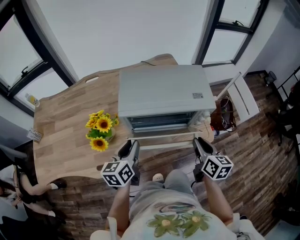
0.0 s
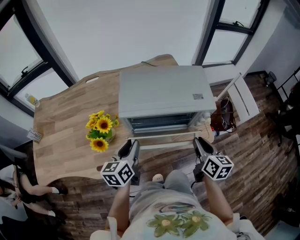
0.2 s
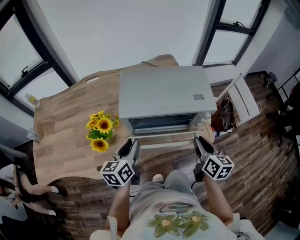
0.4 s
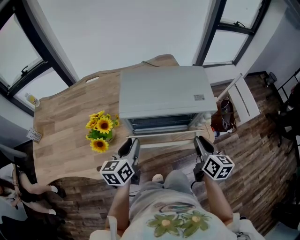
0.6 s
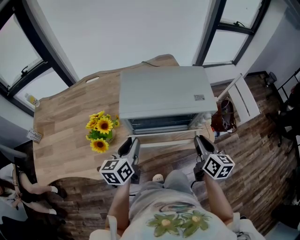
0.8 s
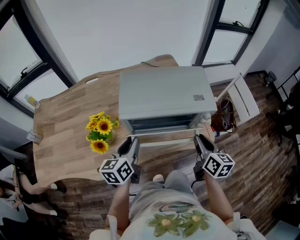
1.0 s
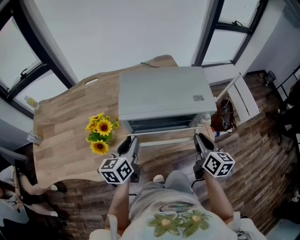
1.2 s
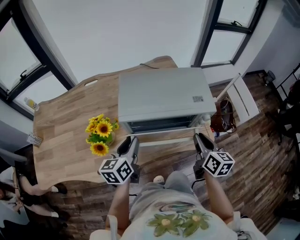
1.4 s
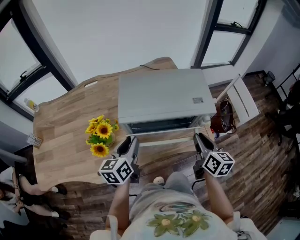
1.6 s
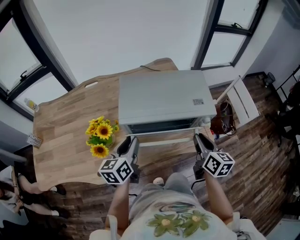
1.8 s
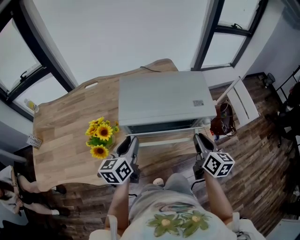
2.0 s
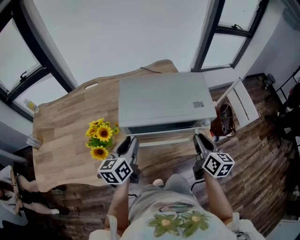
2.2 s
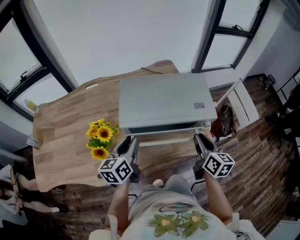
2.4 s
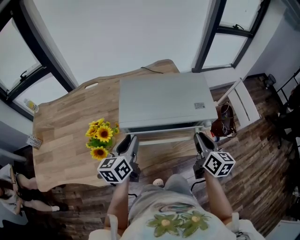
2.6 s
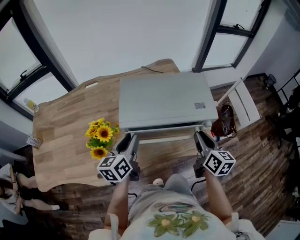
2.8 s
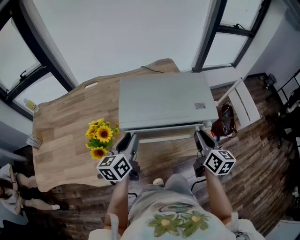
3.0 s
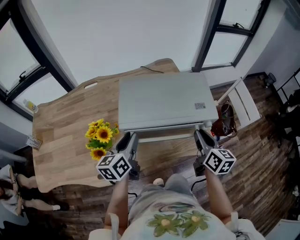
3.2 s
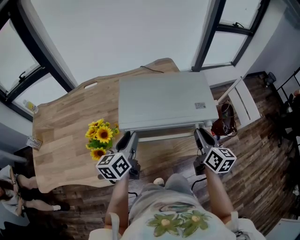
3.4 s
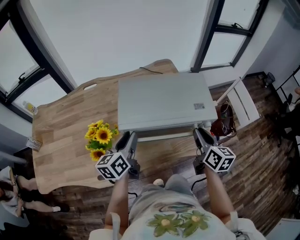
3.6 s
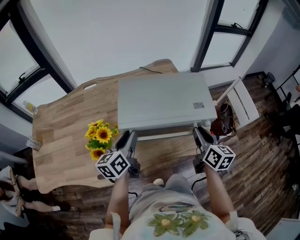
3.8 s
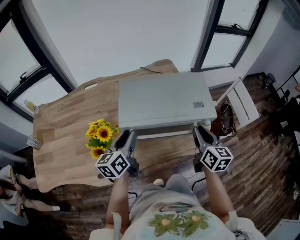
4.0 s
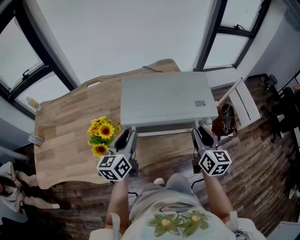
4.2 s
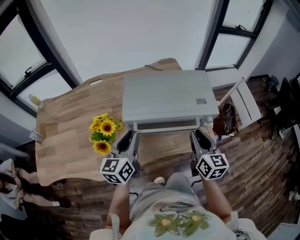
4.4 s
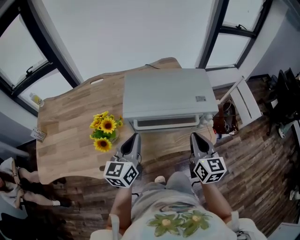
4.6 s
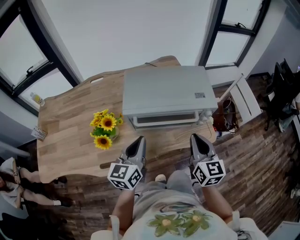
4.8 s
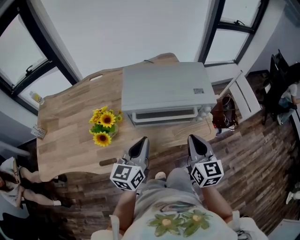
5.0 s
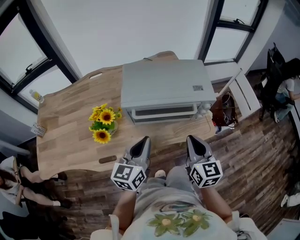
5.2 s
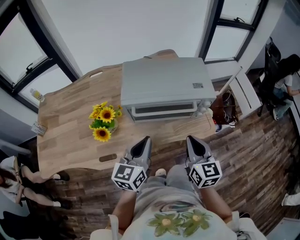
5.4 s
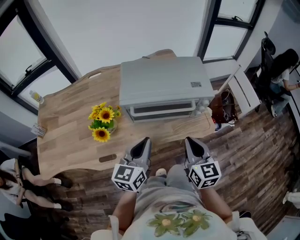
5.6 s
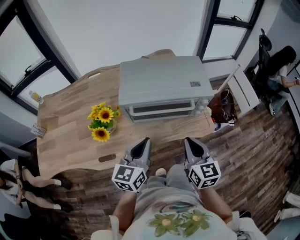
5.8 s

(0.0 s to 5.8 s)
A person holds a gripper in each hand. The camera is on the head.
0.0 s - 1.4 s: The grippers stay close to where they were, moving slightly.
1.4 s - 4.4 s: The grippers stay close to where they were, moving slightly.
4.4 s - 5.8 s: The right gripper heads backward, covering some 10 cm, and closes its fingers. Meanwhile the left gripper heads backward and to the right, covering approximately 10 cm, and closes its fingers.

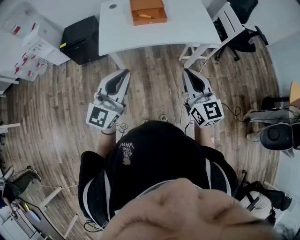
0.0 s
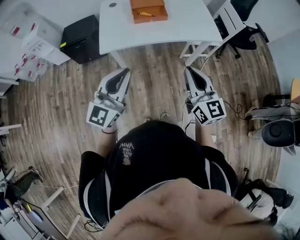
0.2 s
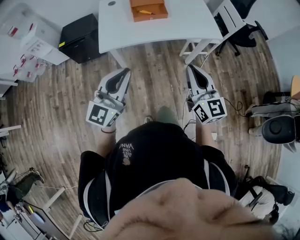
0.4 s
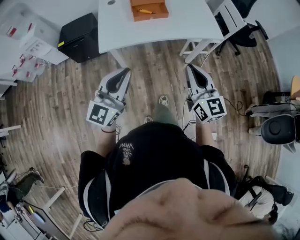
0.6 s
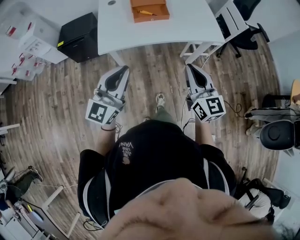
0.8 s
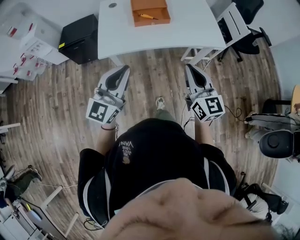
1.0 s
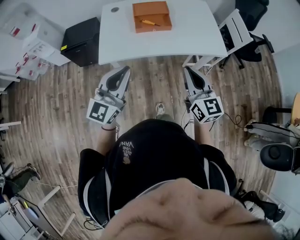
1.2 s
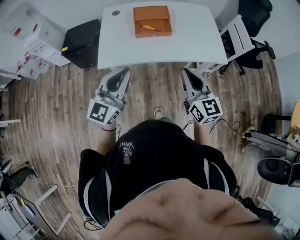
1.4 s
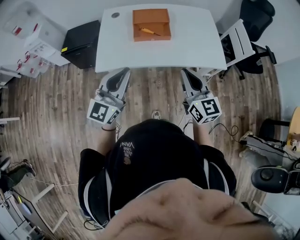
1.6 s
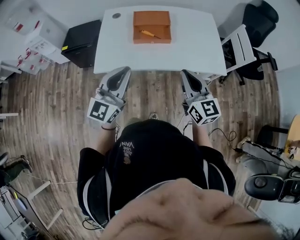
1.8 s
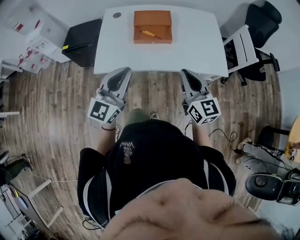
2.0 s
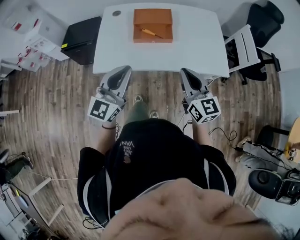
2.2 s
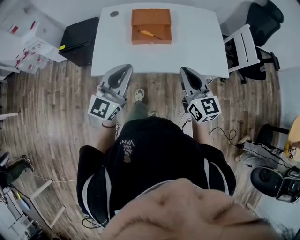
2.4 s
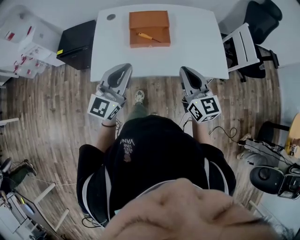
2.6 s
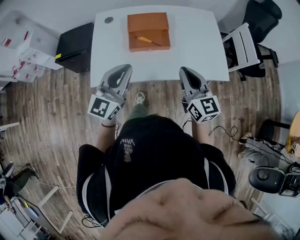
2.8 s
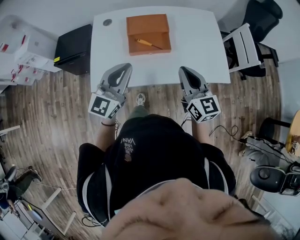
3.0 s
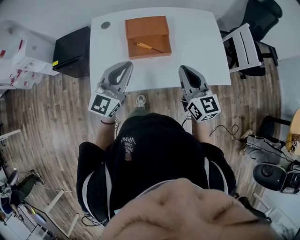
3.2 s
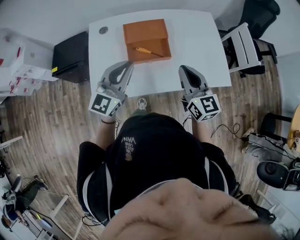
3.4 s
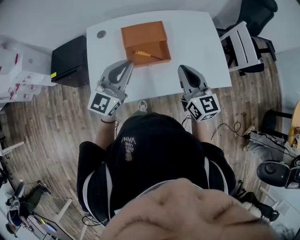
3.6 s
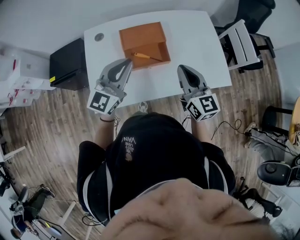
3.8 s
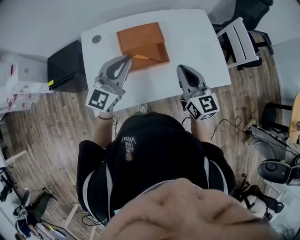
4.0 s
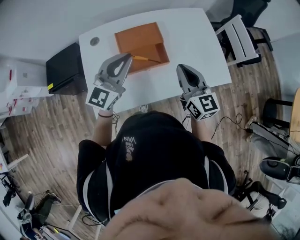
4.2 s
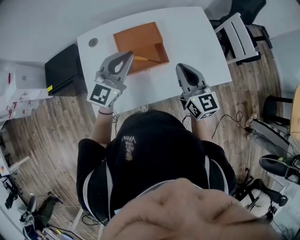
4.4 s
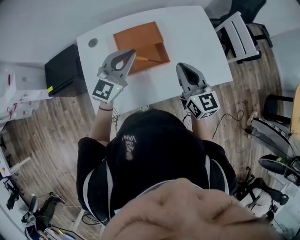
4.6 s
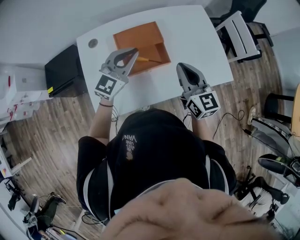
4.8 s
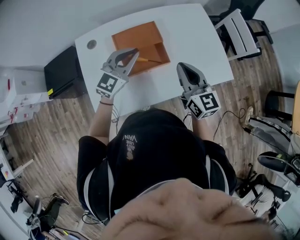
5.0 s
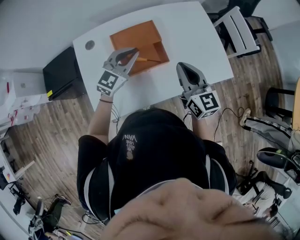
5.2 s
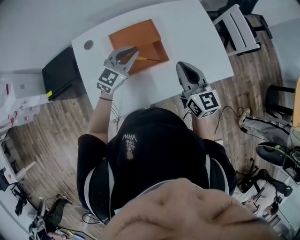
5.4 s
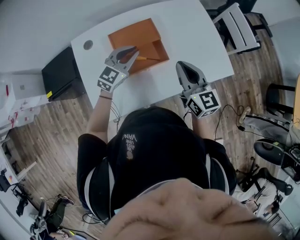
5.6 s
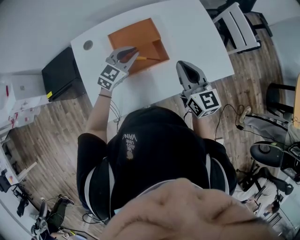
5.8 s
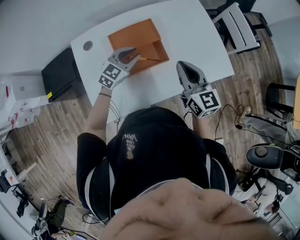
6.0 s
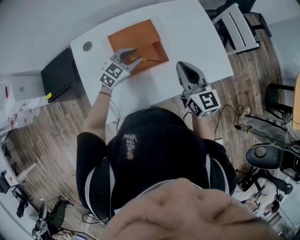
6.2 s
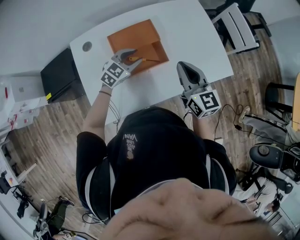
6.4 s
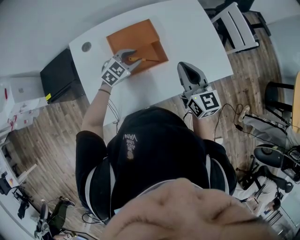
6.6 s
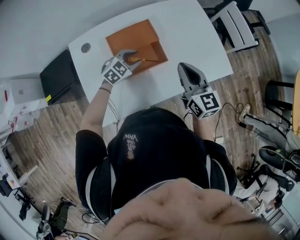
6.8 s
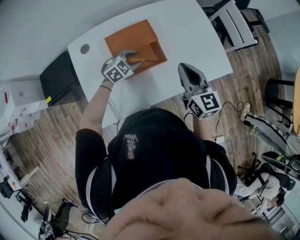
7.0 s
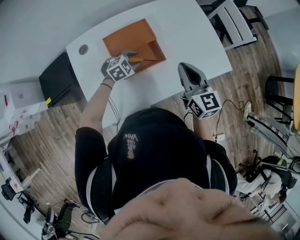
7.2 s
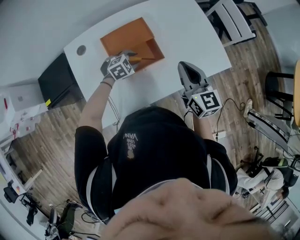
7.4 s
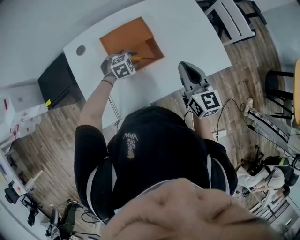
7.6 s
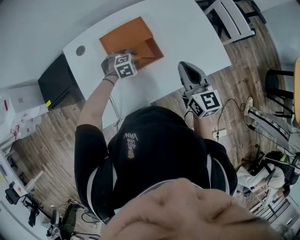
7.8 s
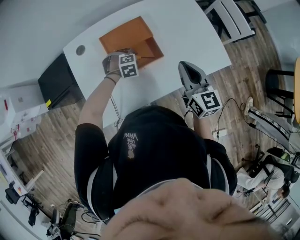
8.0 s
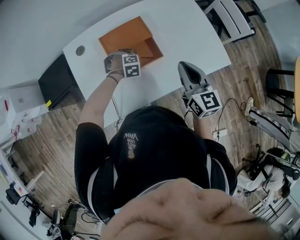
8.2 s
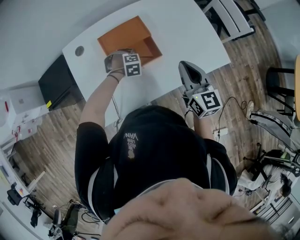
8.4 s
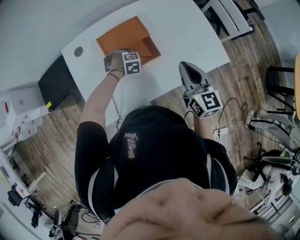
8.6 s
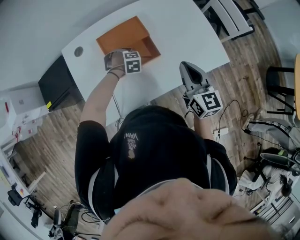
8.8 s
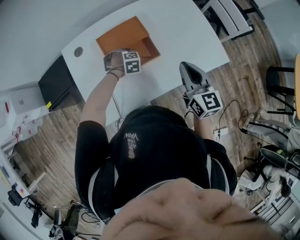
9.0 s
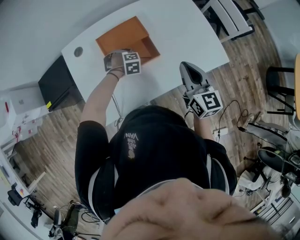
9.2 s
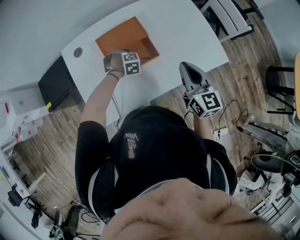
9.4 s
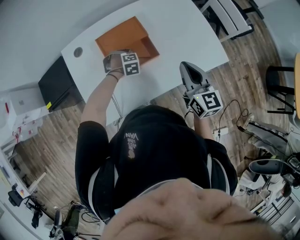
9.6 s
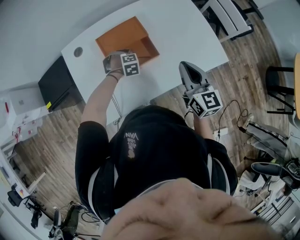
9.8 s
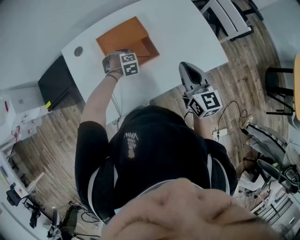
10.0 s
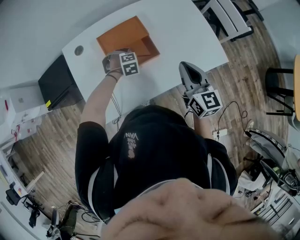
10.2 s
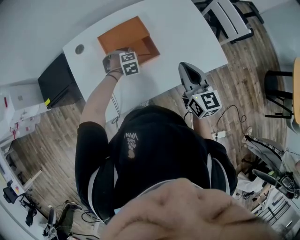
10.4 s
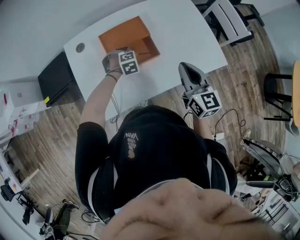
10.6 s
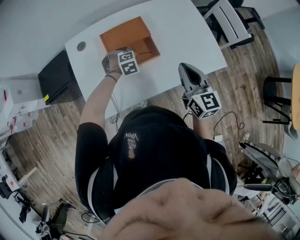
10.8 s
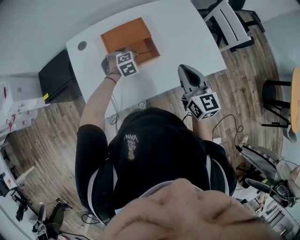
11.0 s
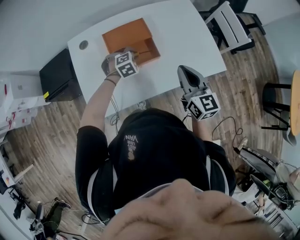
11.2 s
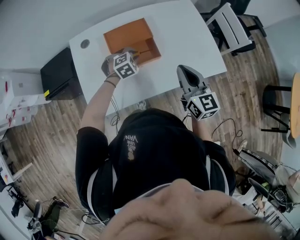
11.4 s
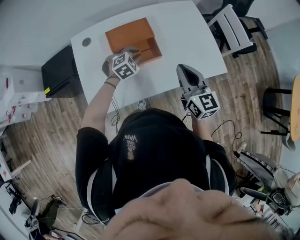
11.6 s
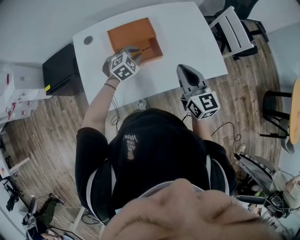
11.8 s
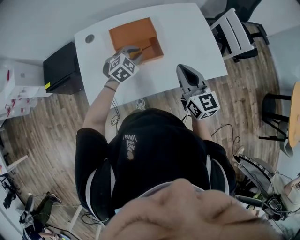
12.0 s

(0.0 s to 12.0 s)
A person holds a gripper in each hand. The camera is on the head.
0.0 s - 1.6 s: The two grippers go approximately 20 cm forward.
1.6 s - 3.0 s: The two grippers go some 15 cm forward.
3.0 s - 4.4 s: The right gripper moves forward, about 10 cm. The left gripper travels forward by some 15 cm.
4.4 s - 6.0 s: The left gripper shifts roughly 15 cm downward and forward, and turns by some 30 degrees.
6.0 s - 7.6 s: The left gripper shifts roughly 15 cm downward, and points its fingers approximately 40 degrees further downward.
7.6 s - 9.0 s: The left gripper changes its angle by roughly 30 degrees.
9.0 s - 10.4 s: The grippers make only small movements.
10.4 s - 12.0 s: The left gripper travels upward by some 15 cm, and rotates roughly 40 degrees.

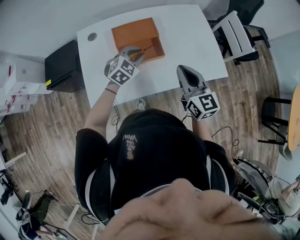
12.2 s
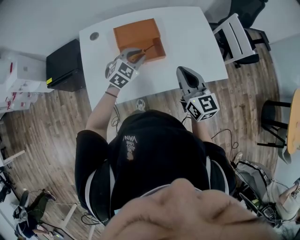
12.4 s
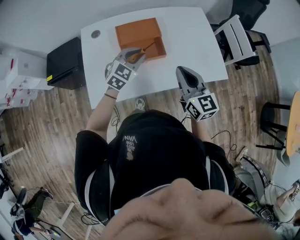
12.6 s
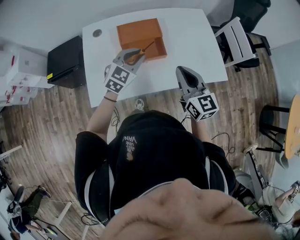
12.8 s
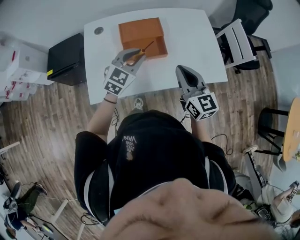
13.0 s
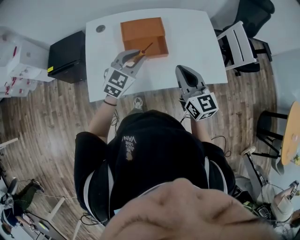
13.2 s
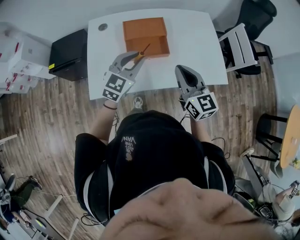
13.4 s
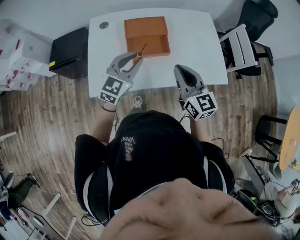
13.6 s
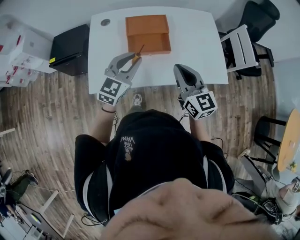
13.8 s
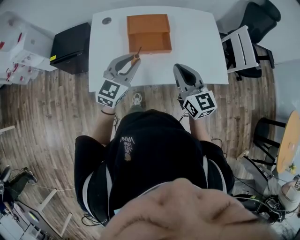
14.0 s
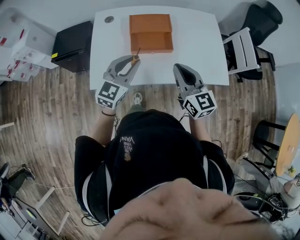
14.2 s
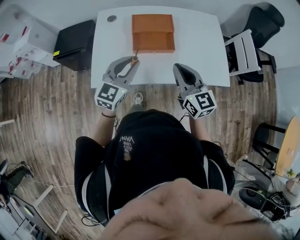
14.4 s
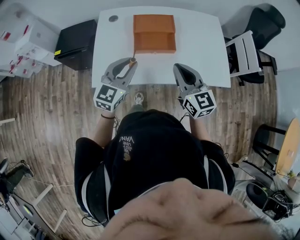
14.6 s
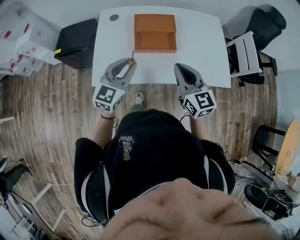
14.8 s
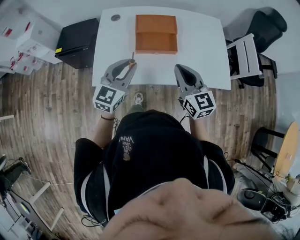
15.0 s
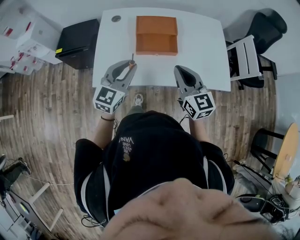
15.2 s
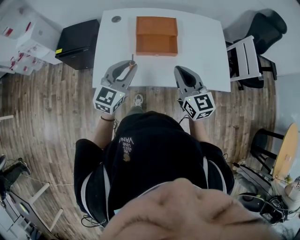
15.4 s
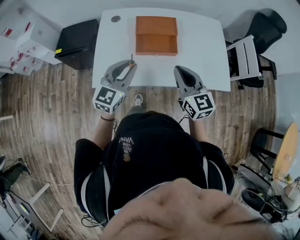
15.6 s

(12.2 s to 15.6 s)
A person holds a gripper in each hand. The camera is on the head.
12.2 s - 13.8 s: The right gripper changes place by some 5 cm. The left gripper moves backward and upward, some 15 cm, and changes its angle by roughly 30 degrees.
13.8 s - 15.6 s: The left gripper ends up some 5 cm from where it was.

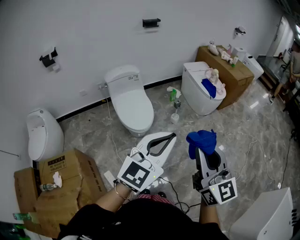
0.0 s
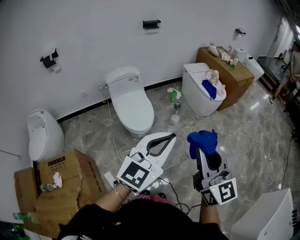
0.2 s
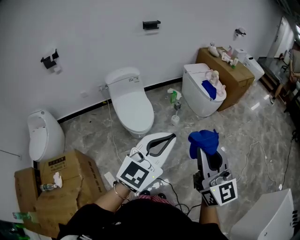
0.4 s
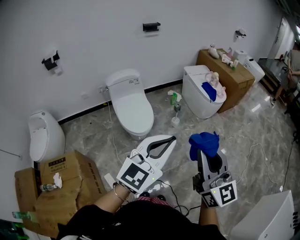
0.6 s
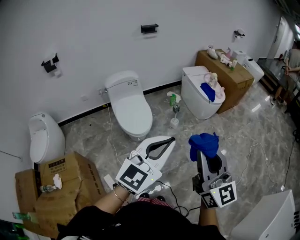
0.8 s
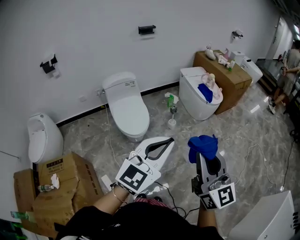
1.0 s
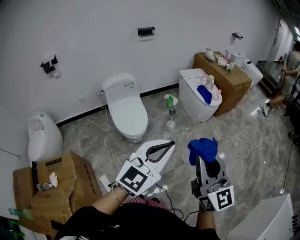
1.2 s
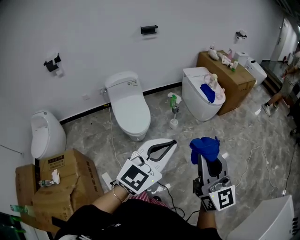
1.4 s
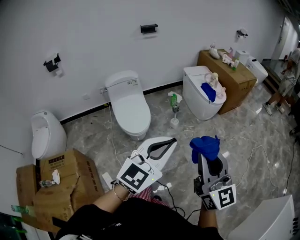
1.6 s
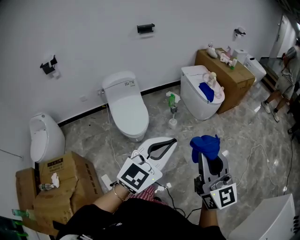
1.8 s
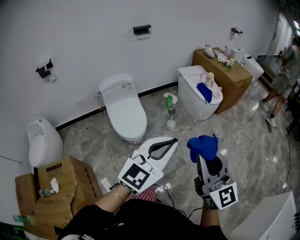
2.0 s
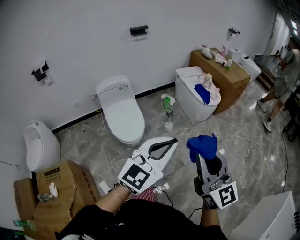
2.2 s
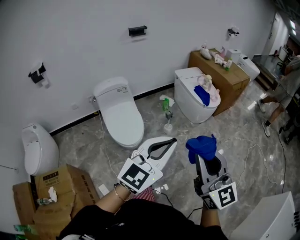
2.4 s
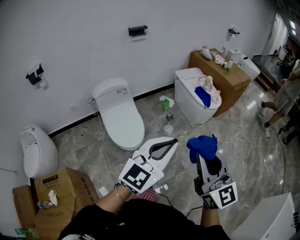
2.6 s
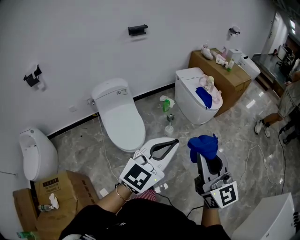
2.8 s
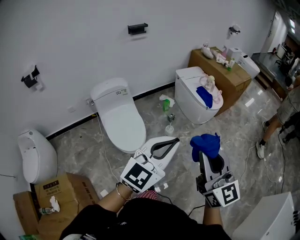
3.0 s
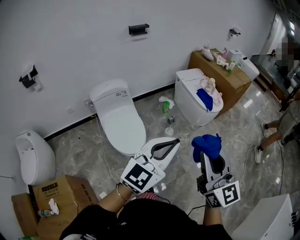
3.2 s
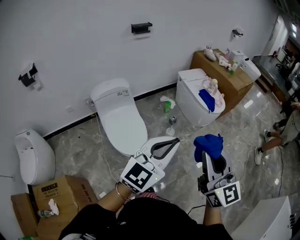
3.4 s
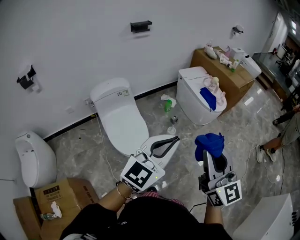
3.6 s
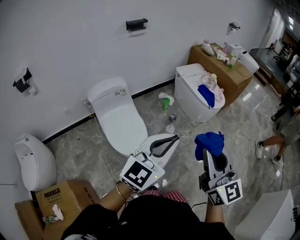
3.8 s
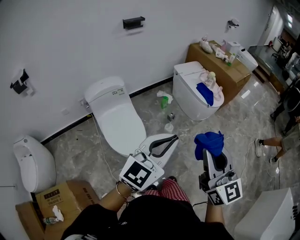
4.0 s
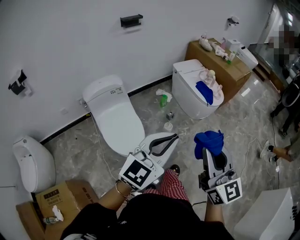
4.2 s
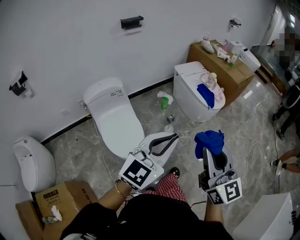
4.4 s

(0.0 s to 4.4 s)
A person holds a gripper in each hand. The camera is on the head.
0.0 s - 1.4 s: Both grippers travel together to the right, some 10 cm.
1.4 s - 3.0 s: Both grippers travel together forward and to the left, approximately 20 cm.
3.0 s - 4.4 s: Both grippers travel together forward, about 10 cm.
